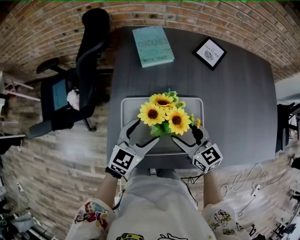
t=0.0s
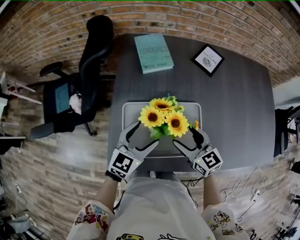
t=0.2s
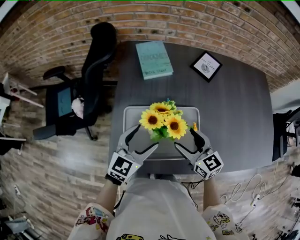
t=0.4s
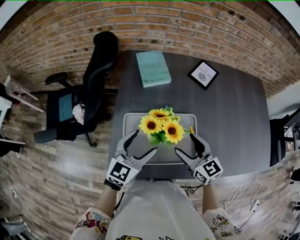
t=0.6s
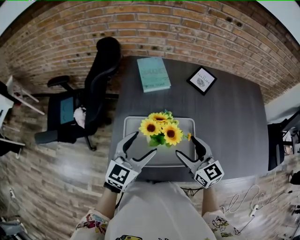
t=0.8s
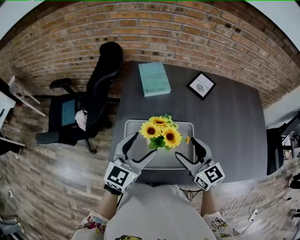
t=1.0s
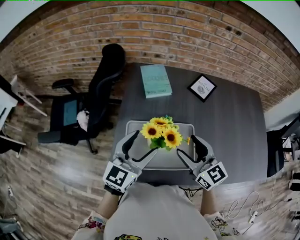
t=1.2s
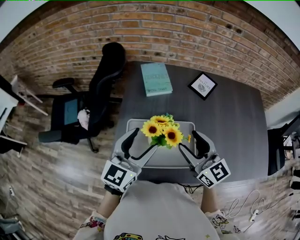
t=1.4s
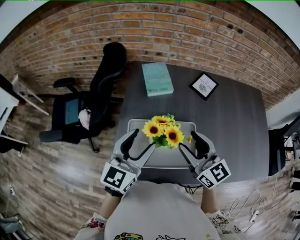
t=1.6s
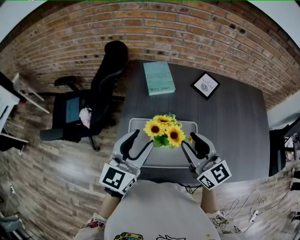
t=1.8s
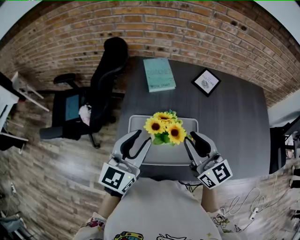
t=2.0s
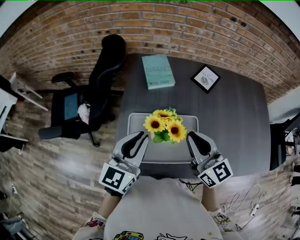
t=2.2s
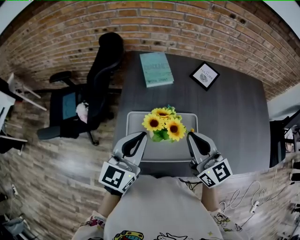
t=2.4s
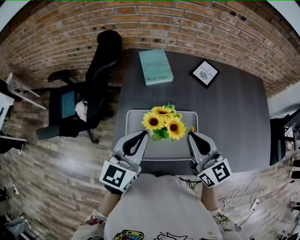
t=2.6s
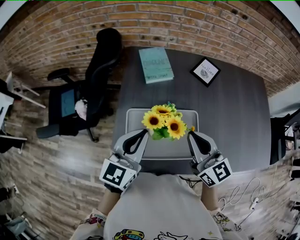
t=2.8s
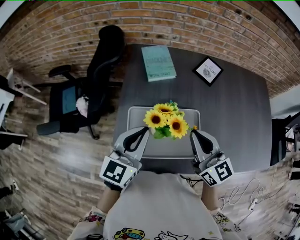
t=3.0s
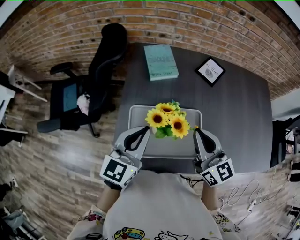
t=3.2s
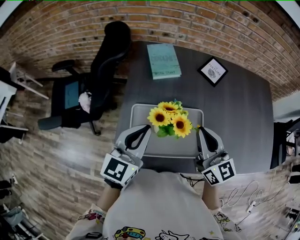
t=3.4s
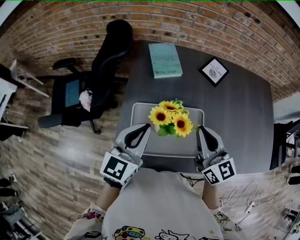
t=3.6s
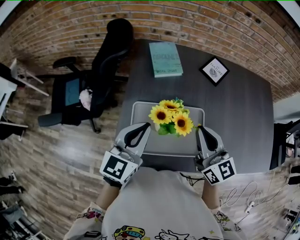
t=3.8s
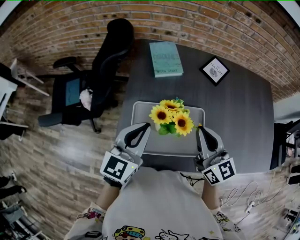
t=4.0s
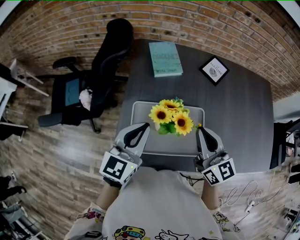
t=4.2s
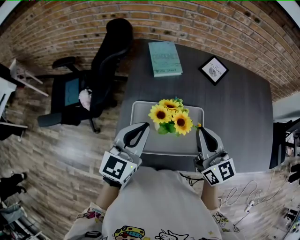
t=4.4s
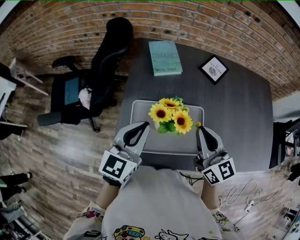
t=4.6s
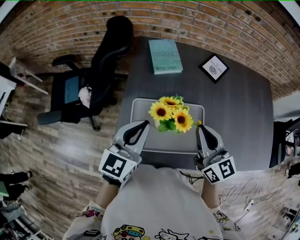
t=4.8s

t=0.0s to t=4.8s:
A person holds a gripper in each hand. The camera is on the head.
t=0.0s to t=1.6s: Both grippers travel together upward, roughly 15 cm. The left gripper swivels about 20 degrees.
t=1.6s to t=3.2s: The left gripper closes up. The right gripper closes.
t=3.2s to t=4.8s: The two grippers keep their place.

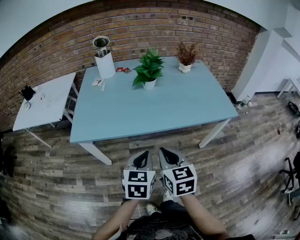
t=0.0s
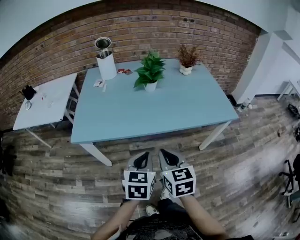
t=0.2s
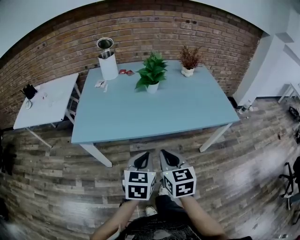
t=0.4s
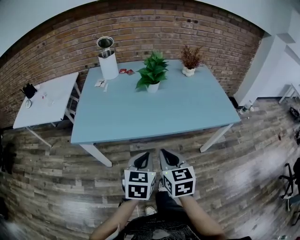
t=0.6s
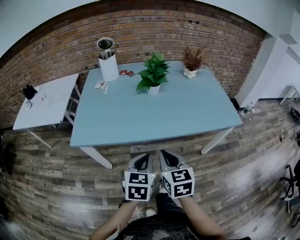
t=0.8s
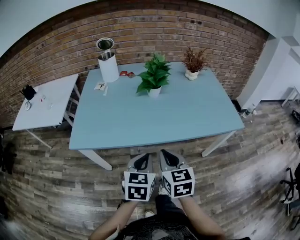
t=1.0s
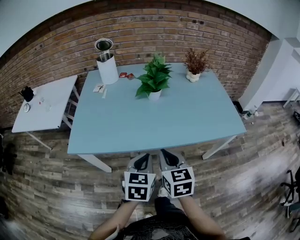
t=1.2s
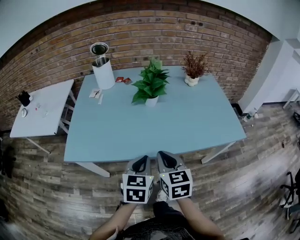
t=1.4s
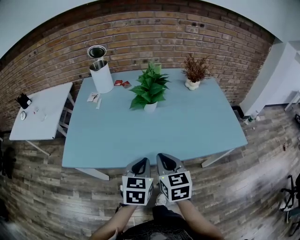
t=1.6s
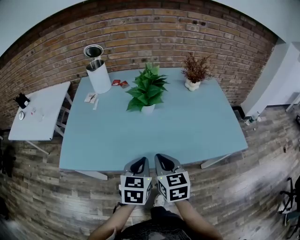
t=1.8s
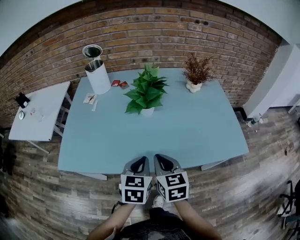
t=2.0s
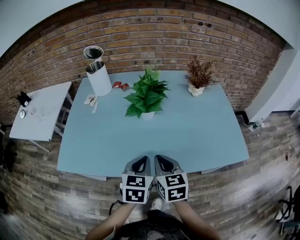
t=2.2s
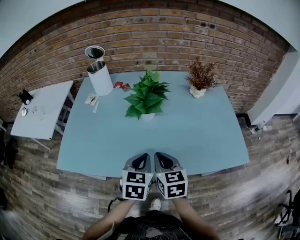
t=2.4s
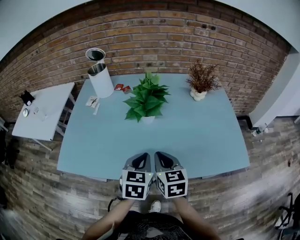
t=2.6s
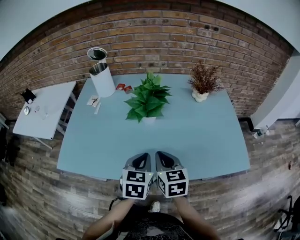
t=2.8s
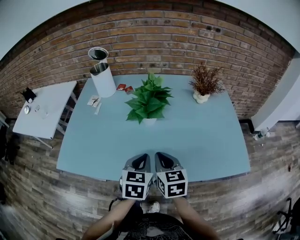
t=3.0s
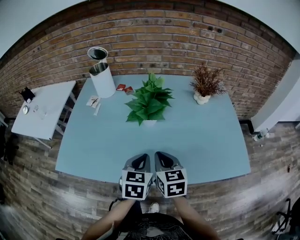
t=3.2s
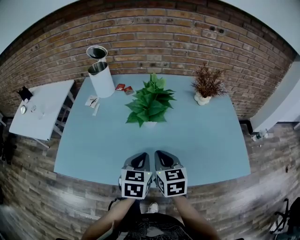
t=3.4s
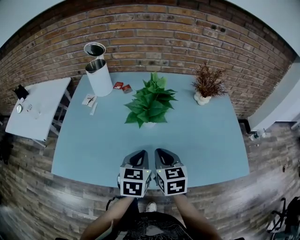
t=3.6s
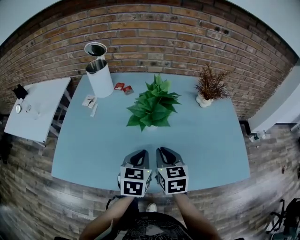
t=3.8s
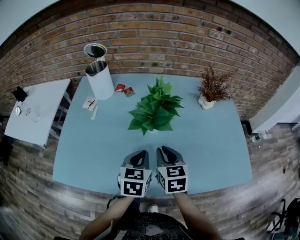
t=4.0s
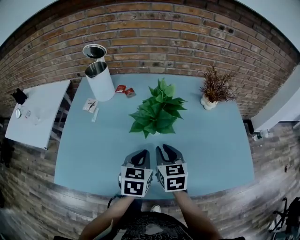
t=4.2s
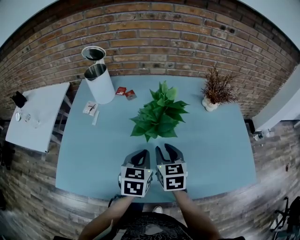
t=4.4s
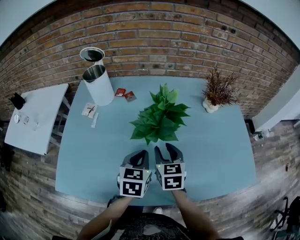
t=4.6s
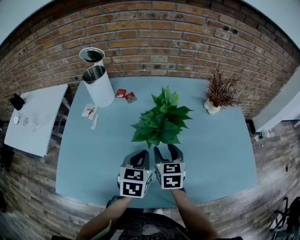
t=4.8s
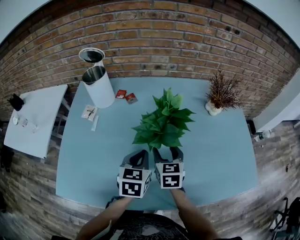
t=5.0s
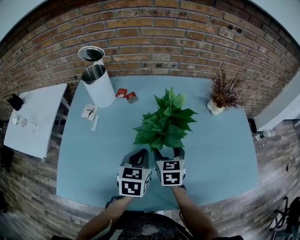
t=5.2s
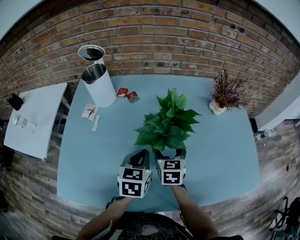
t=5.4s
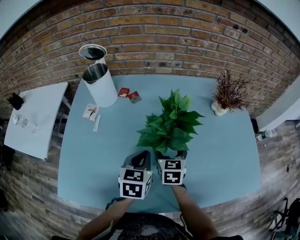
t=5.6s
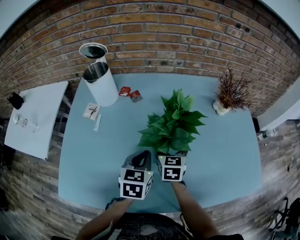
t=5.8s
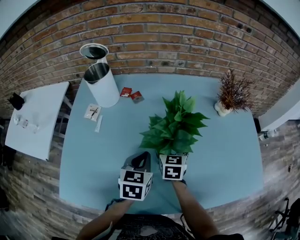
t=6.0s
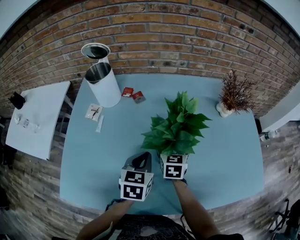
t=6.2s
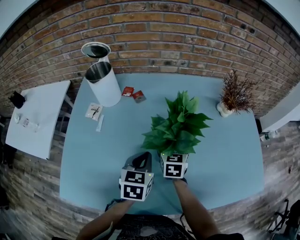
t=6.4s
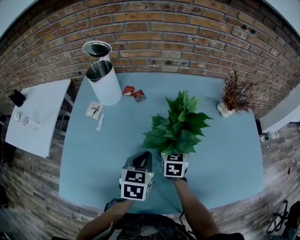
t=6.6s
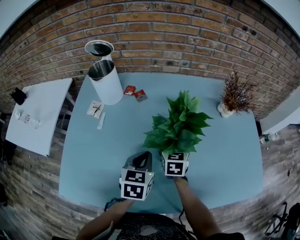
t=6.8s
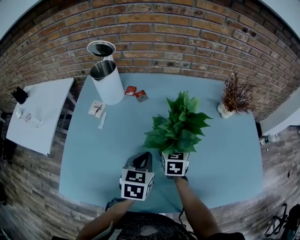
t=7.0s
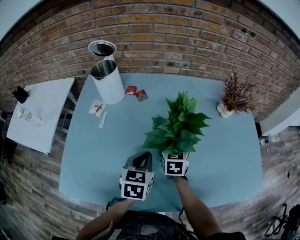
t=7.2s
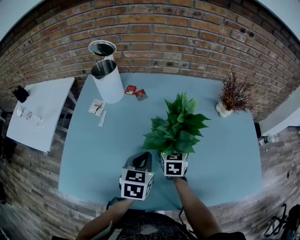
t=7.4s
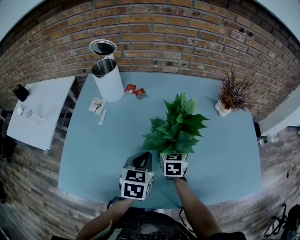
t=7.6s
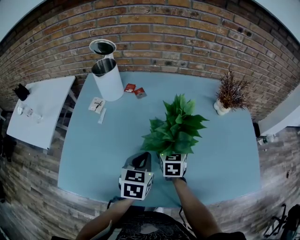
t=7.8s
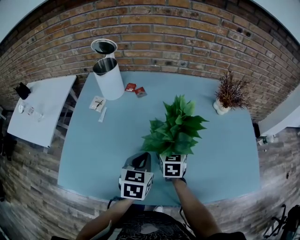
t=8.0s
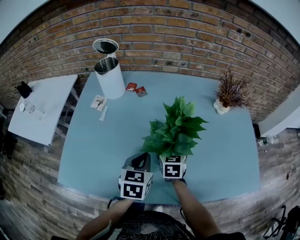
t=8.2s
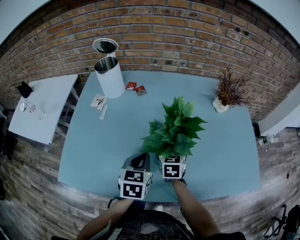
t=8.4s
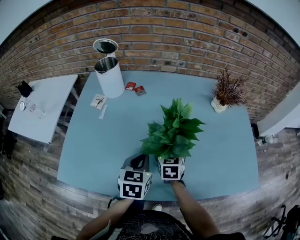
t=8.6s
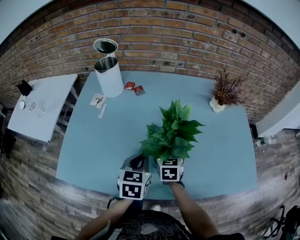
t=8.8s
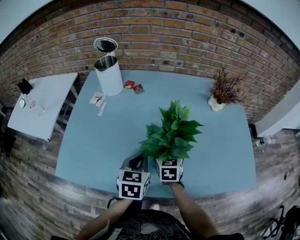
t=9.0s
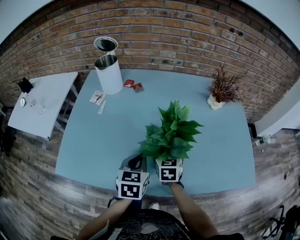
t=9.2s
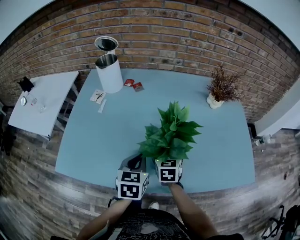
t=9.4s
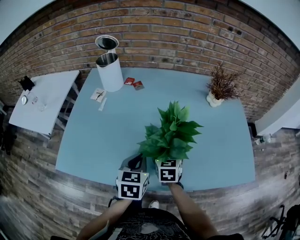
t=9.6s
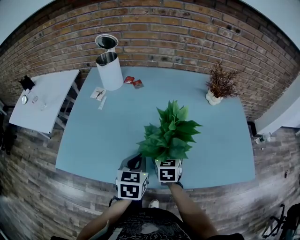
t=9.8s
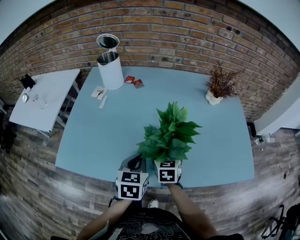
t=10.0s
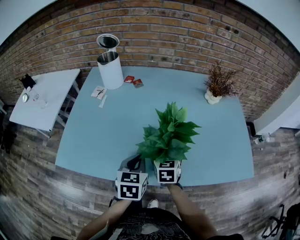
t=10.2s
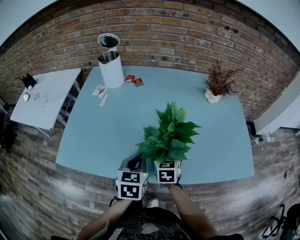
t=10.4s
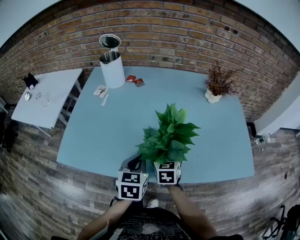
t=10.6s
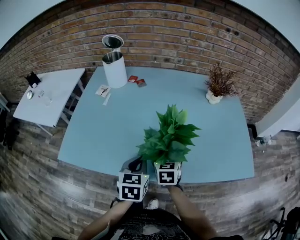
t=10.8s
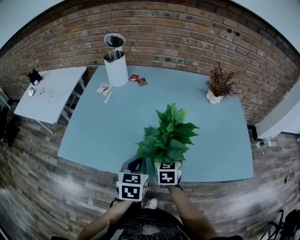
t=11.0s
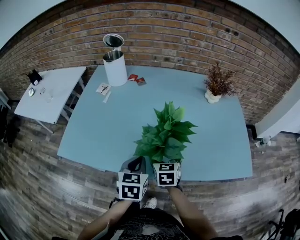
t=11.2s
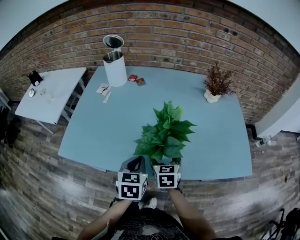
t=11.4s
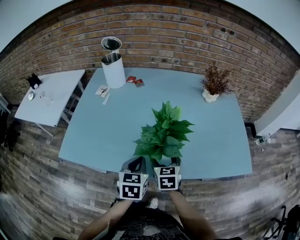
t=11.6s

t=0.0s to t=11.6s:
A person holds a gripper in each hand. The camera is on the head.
t=0.0s to t=1.4s: Both grippers travel together forward, about 15 cm.
t=1.4s to t=2.8s: The right gripper travels forward by approximately 15 cm. Meanwhile the left gripper shifts about 15 cm forward and to the right.
t=2.8s to t=4.4s: Both grippers move forward, approximately 15 cm.
t=4.4s to t=5.8s: The right gripper moves forward and downward, about 10 cm, and opens up. Meanwhile the left gripper ends up approximately 5 cm from where it was.
t=5.8s to t=7.2s: There are only small adjustments of the grippers.
t=7.2s to t=8.8s: The grippers both shift backward by some 5 cm.
t=8.8s to t=10.2s: Both grippers travel together backward, approximately 5 cm.
t=10.2s to t=11.6s: The right gripper shifts roughly 5 cm backward.

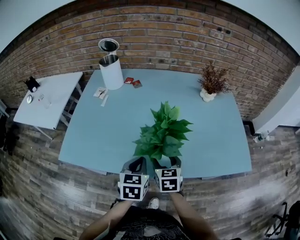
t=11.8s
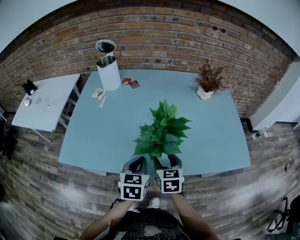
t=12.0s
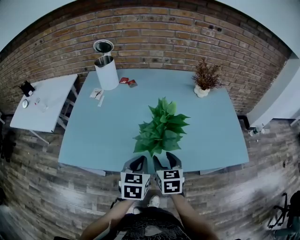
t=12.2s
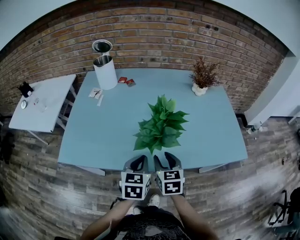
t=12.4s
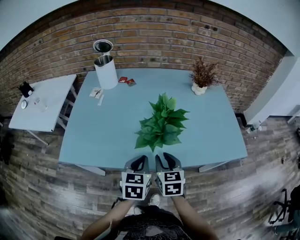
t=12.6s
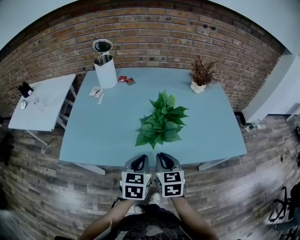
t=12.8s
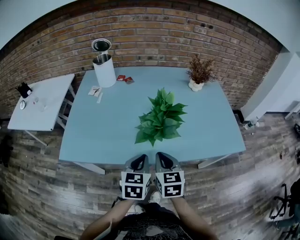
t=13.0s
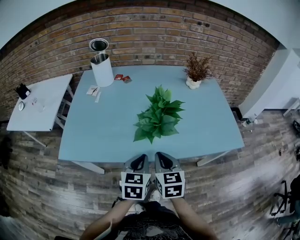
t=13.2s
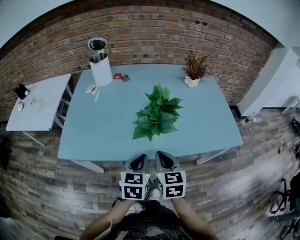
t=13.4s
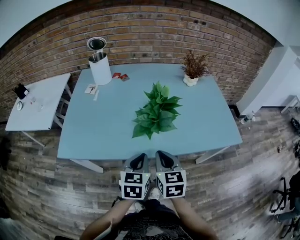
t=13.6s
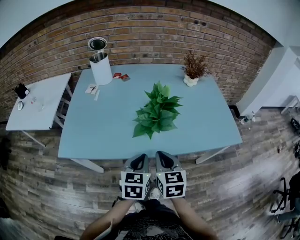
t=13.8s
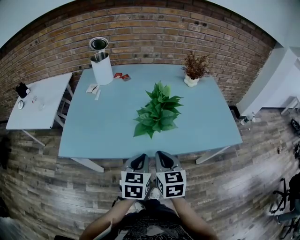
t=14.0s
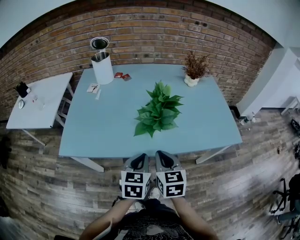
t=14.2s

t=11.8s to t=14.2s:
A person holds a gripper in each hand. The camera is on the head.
t=11.8s to t=13.0s: The right gripper shifts about 10 cm backward and upward, and closes. Meanwhile the left gripper is displaced backward by approximately 5 cm.
t=13.0s to t=14.2s: The grippers make only small movements.

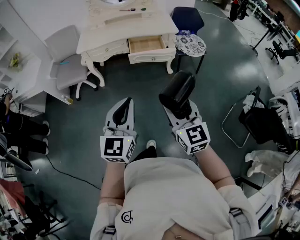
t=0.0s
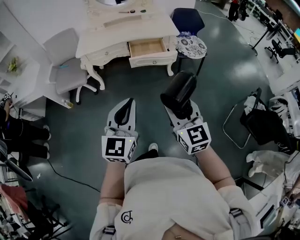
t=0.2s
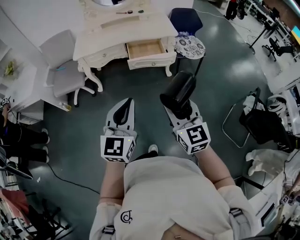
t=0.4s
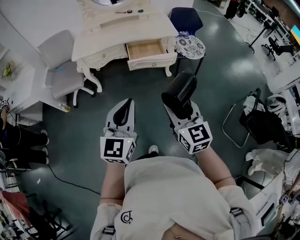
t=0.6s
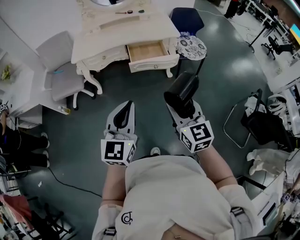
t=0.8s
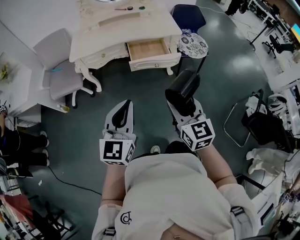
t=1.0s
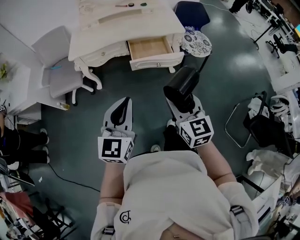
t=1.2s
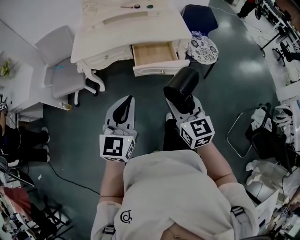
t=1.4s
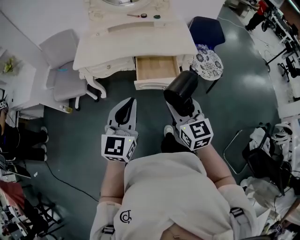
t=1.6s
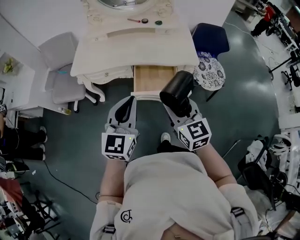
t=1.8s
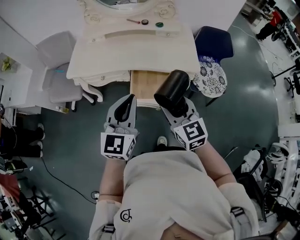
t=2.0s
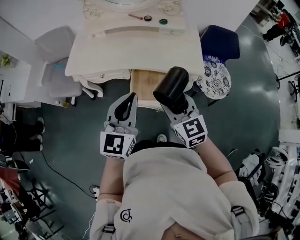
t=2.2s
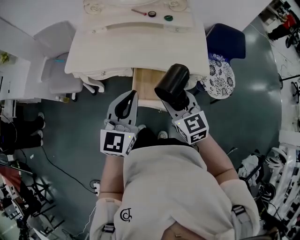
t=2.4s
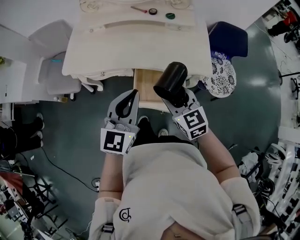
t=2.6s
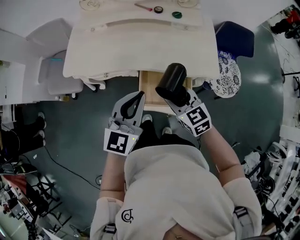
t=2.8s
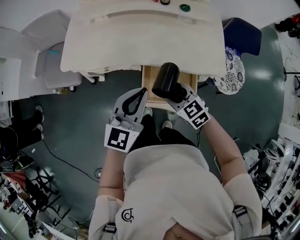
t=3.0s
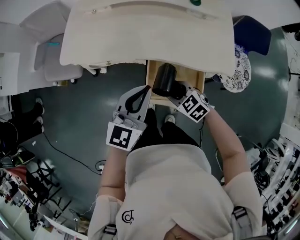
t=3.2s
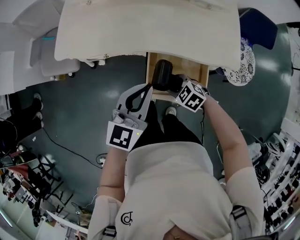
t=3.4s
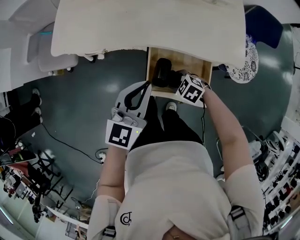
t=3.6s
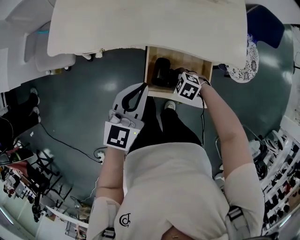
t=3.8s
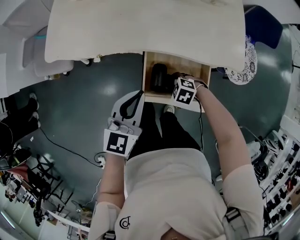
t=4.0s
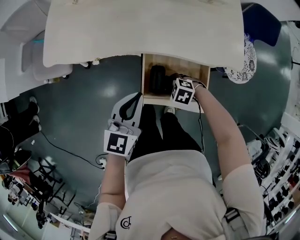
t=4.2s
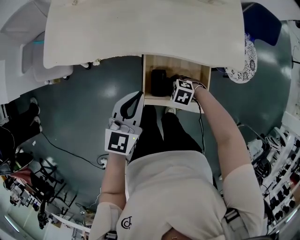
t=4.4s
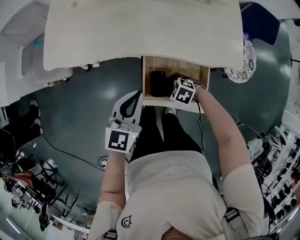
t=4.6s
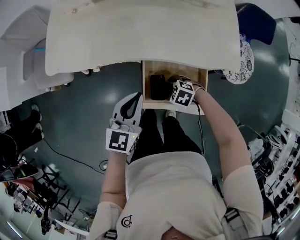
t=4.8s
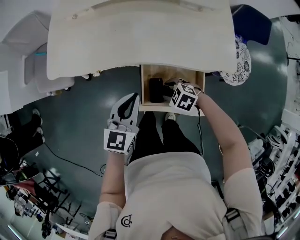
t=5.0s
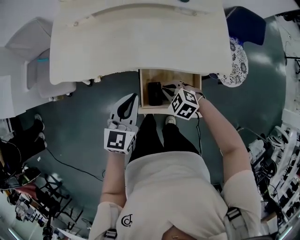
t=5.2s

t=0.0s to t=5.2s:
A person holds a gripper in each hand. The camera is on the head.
t=0.0s to t=1.8s: Both grippers travel together forward, approximately 40 cm.
t=1.8s to t=3.4s: The left gripper moves forward and downward, some 25 cm, while the right gripper shifts roughly 35 cm downward and forward, and points its fingers some 40 degrees further downward.
t=3.4s to t=5.2s: The left gripper is displaced downward by about 5 cm, while the right gripper reaches some 10 cm downward, then returns, and closes.
